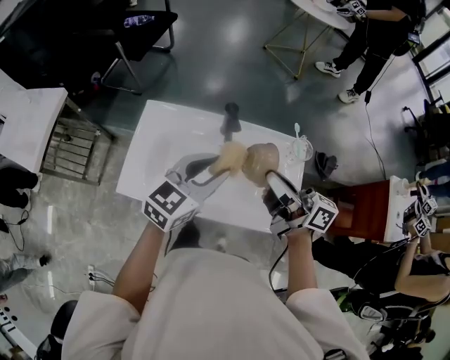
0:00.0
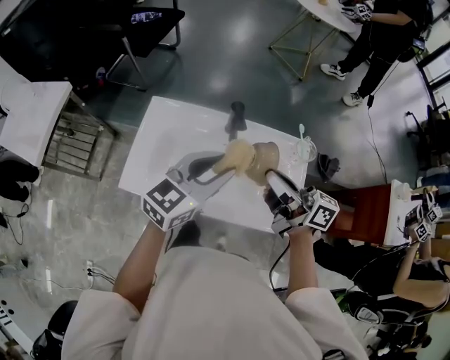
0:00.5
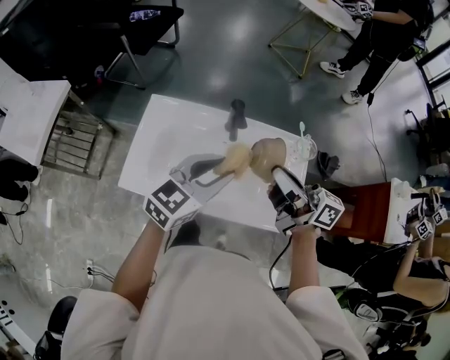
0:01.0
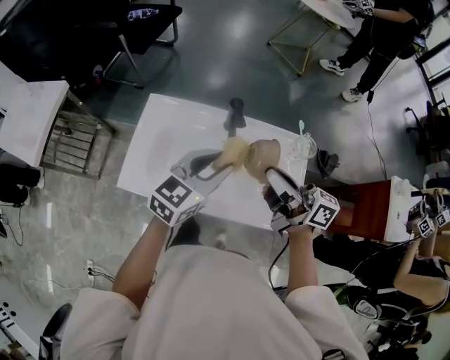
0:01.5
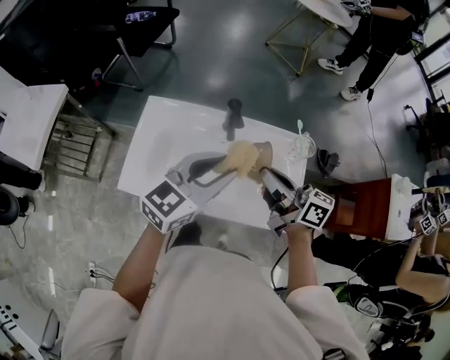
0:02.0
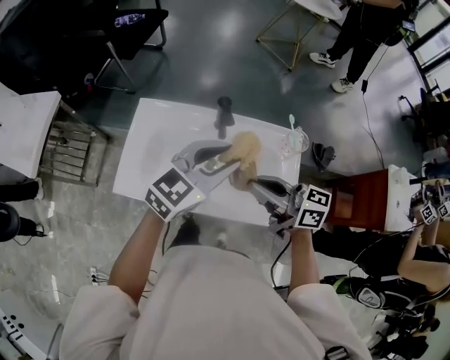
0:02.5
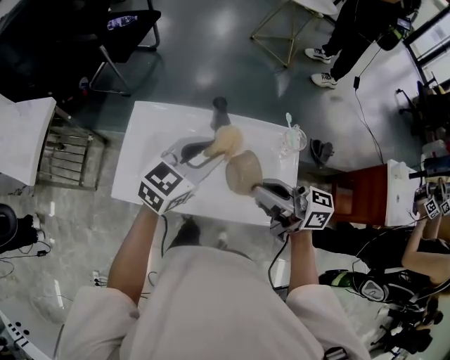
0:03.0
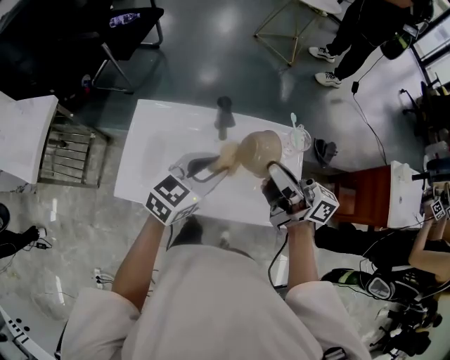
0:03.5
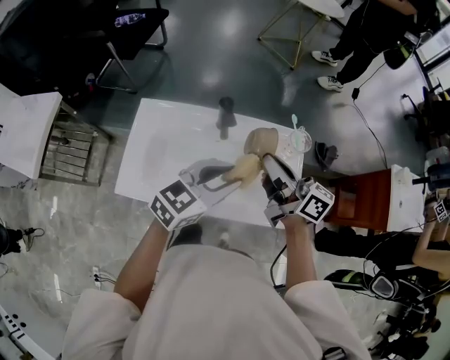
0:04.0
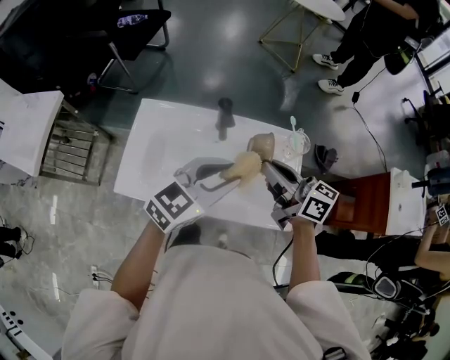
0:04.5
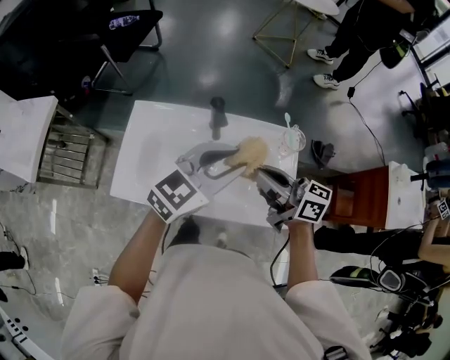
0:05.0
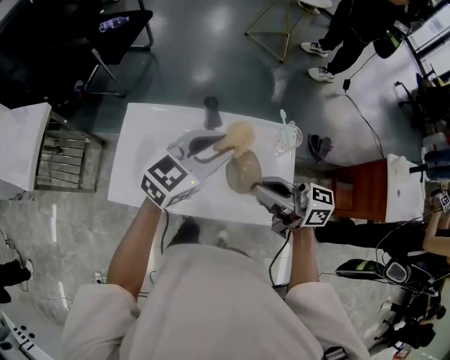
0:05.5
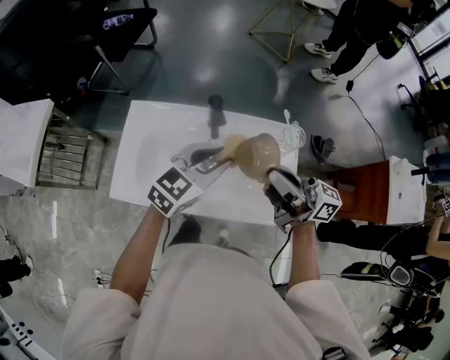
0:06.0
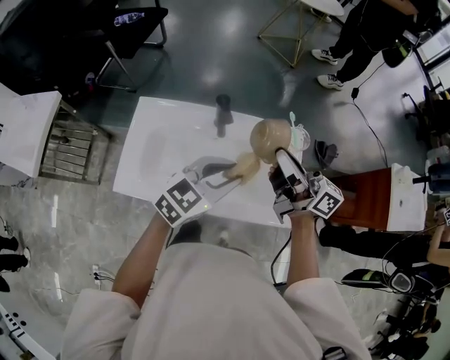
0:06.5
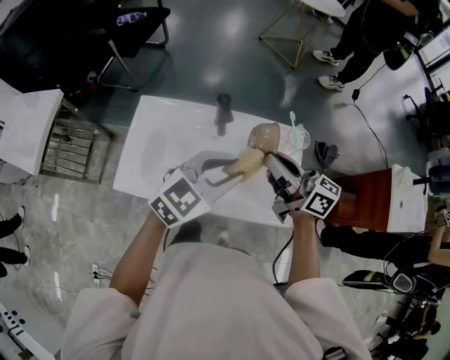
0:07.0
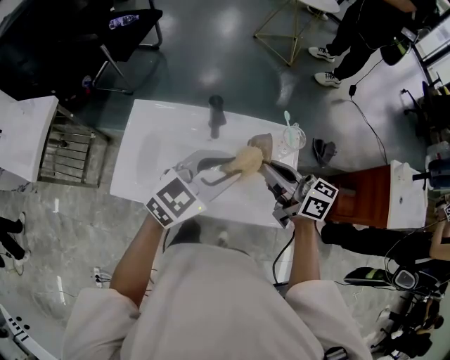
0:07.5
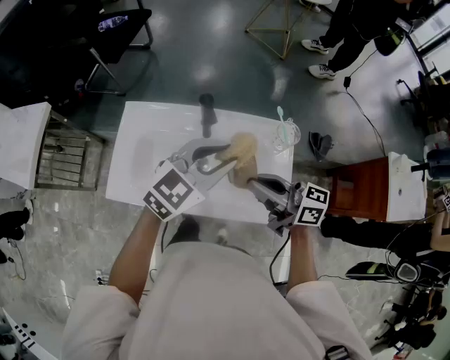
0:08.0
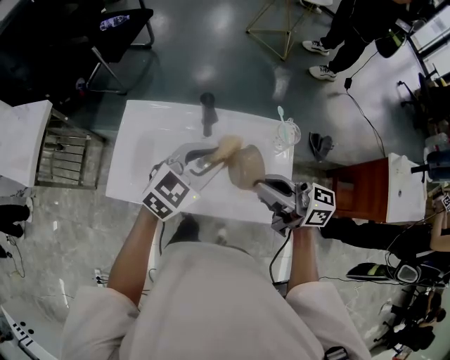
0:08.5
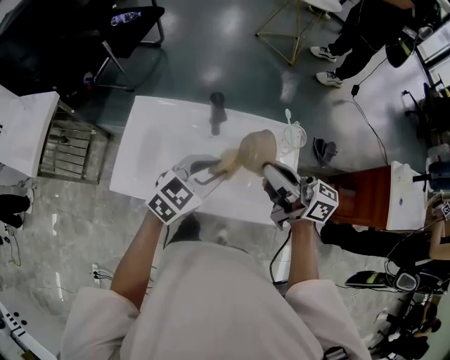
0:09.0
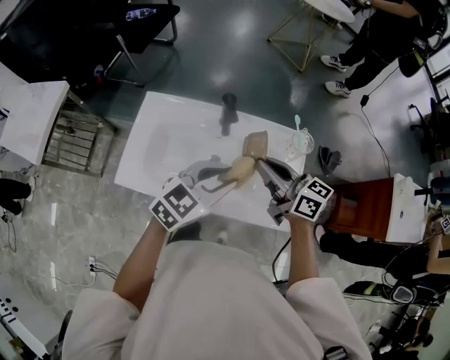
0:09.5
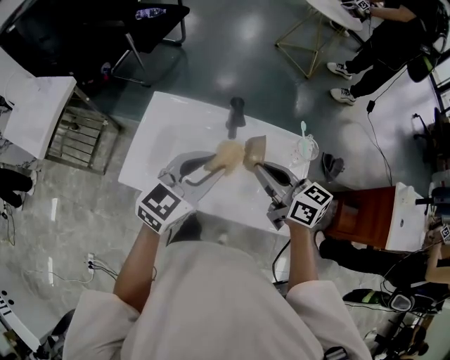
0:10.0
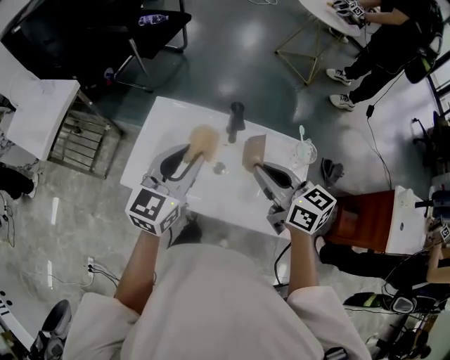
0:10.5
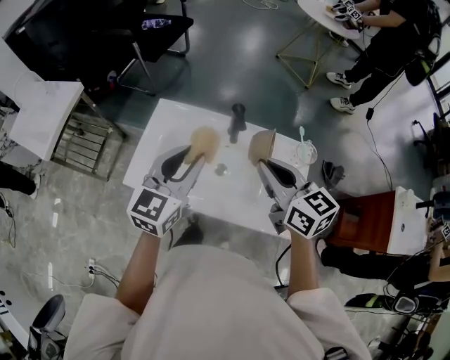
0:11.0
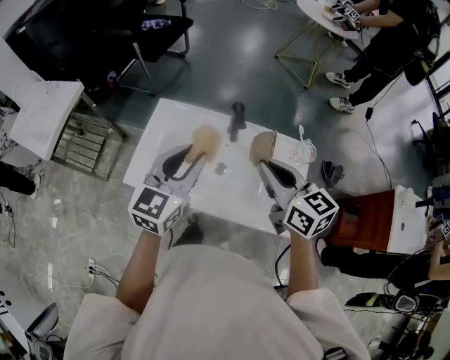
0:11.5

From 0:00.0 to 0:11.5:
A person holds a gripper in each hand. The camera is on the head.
From 0:00.0 to 0:02.0: There are only small adjustments of the grippers.
From 0:02.0 to 0:04.0: The left gripper changes place by roughly 5 cm.
From 0:04.0 to 0:06.0: The right gripper ends up about 5 cm from where it was, and changes its angle by about 20 degrees.
From 0:06.0 to 0:07.5: The left gripper moves approximately 5 cm; the right gripper goes about 5 cm downward, and turns by roughly 20 degrees.
From 0:07.5 to 0:09.5: The left gripper heads downward, covering approximately 5 cm.
From 0:09.5 to 0:11.5: The right gripper heads upward, covering about 5 cm, and turns by approximately 20 degrees, while the left gripper goes approximately 15 cm to the left and upward, and turns by roughly 30 degrees.

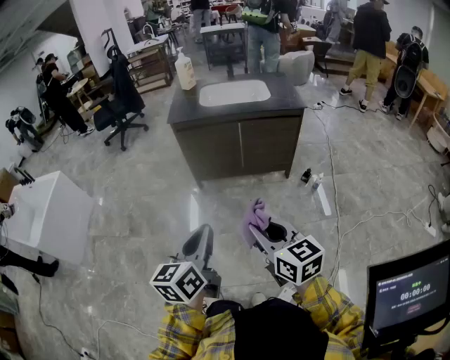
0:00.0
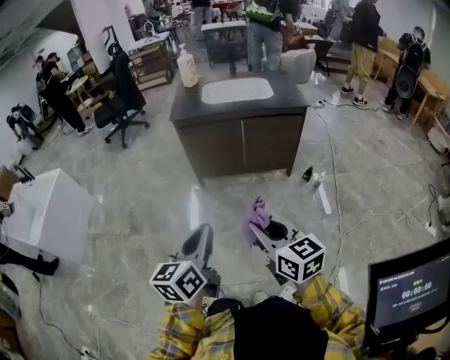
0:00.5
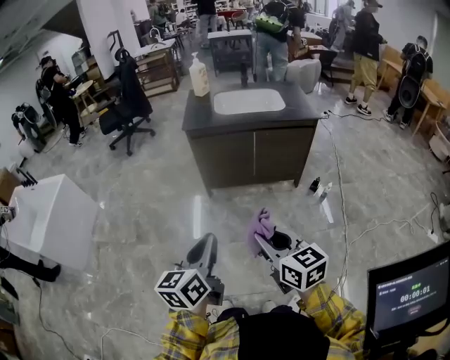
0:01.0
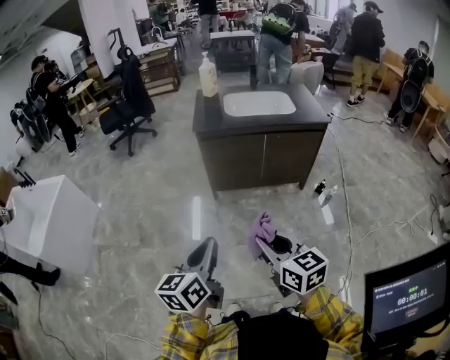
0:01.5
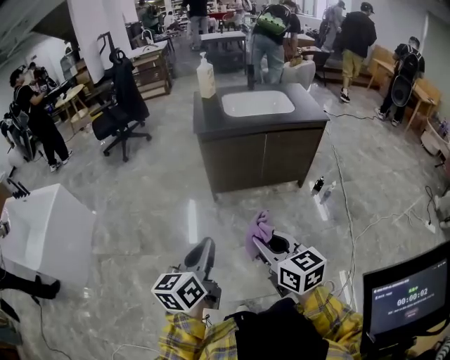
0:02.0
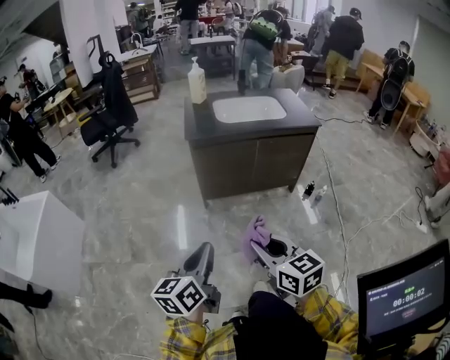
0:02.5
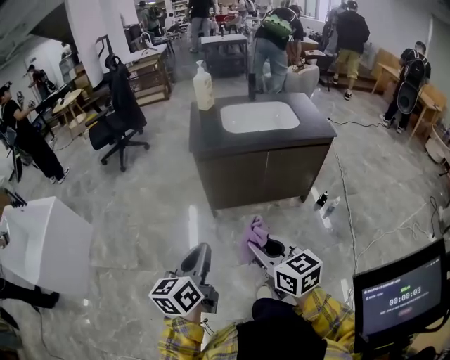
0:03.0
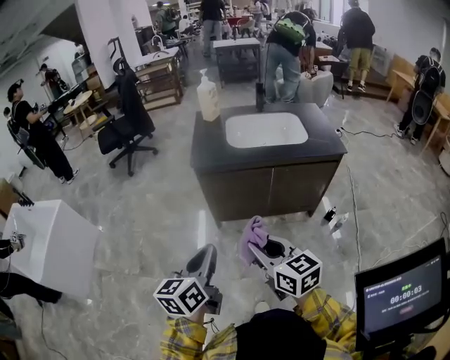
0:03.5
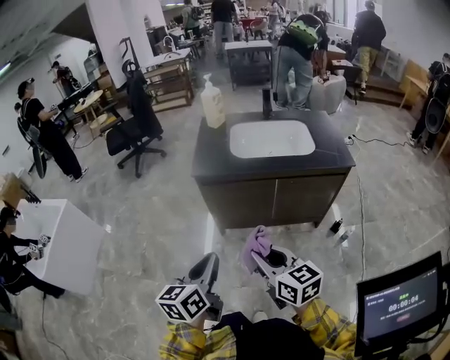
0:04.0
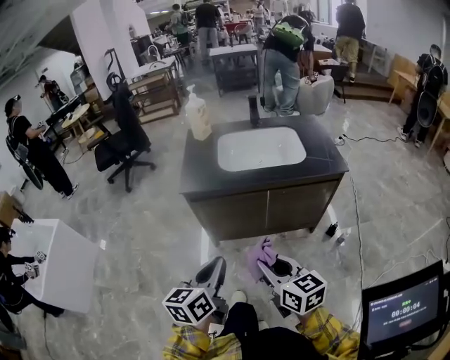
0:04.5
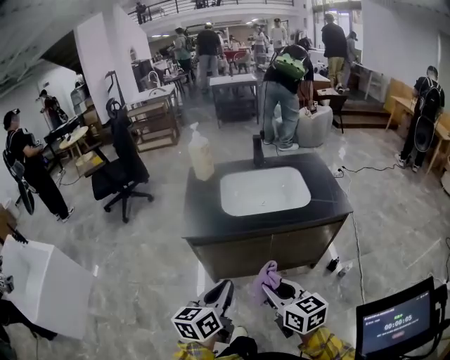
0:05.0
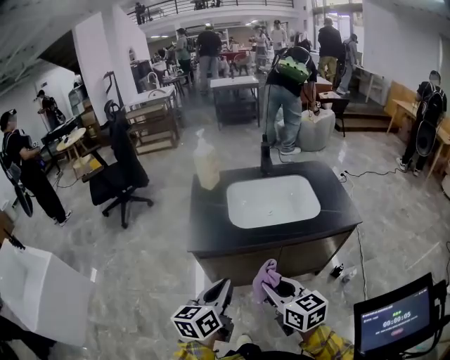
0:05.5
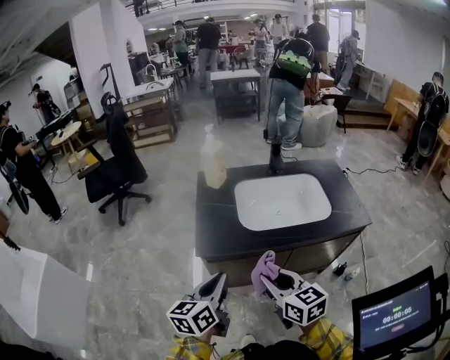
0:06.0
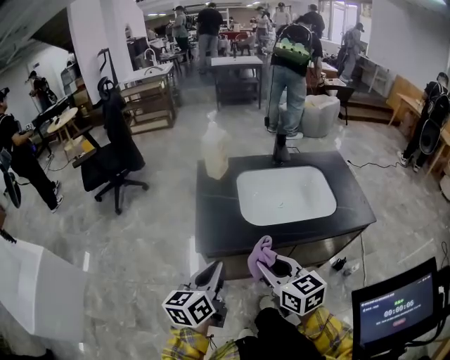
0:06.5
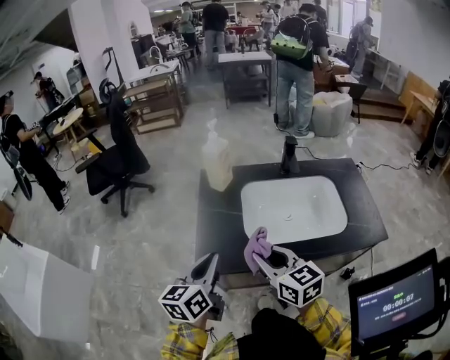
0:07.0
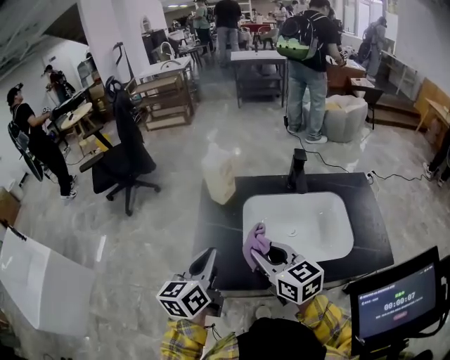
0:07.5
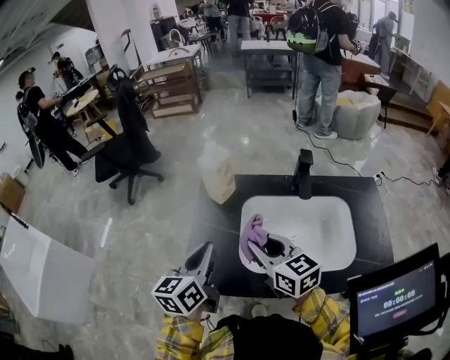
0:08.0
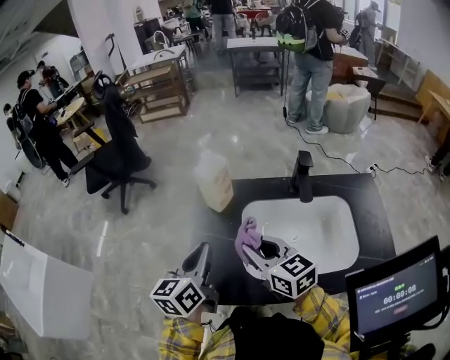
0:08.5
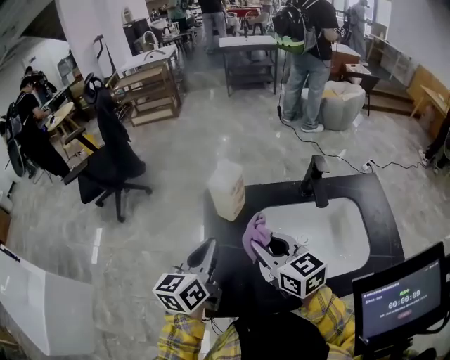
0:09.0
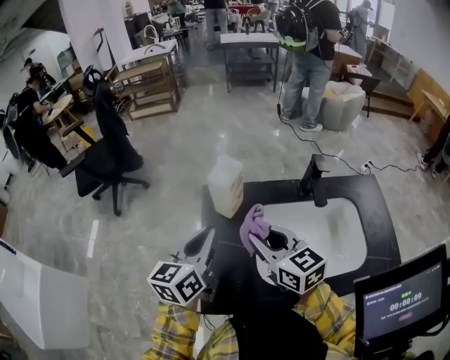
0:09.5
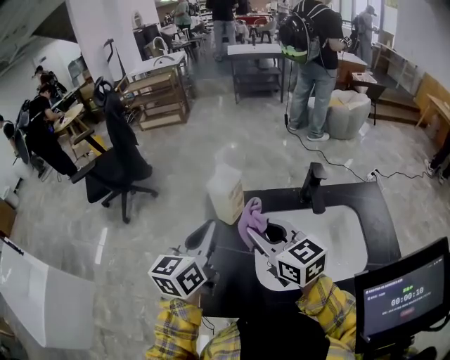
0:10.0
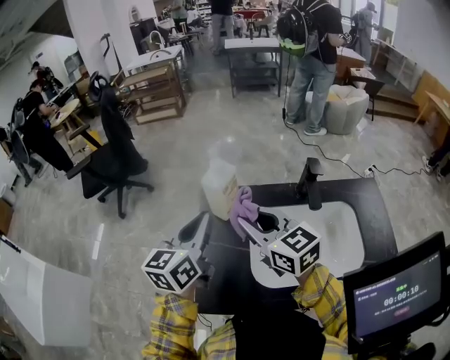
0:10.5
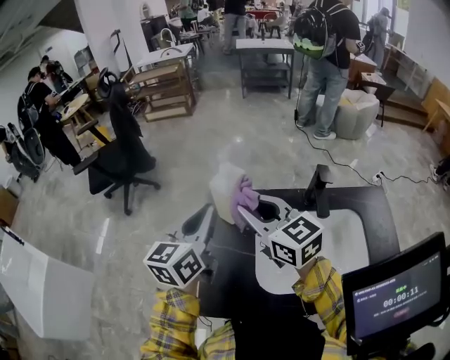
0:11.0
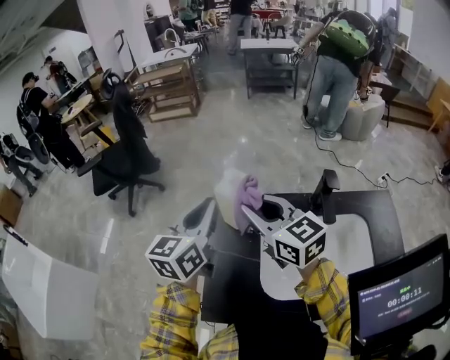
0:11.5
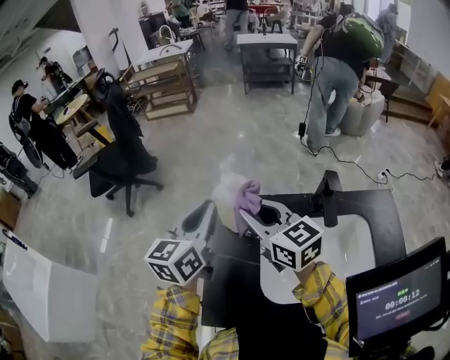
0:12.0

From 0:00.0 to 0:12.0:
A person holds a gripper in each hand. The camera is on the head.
From 0:00.0 to 0:02.0: Both grippers travel together to the left, approximately 25 cm.
From 0:02.0 to 0:04.0: The grippers both shift forward and to the right by approximately 30 cm.
From 0:04.0 to 0:06.0: The grippers both shift forward by roughly 30 cm.
From 0:06.0 to 0:08.0: The grippers both shift forward by approximately 30 cm.
From 0:08.0 to 0:10.0: The two grippers go about 10 cm forward.
From 0:10.0 to 0:12.0: Both grippers move forward, approximately 10 cm.

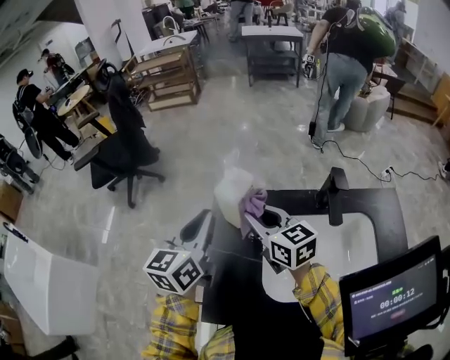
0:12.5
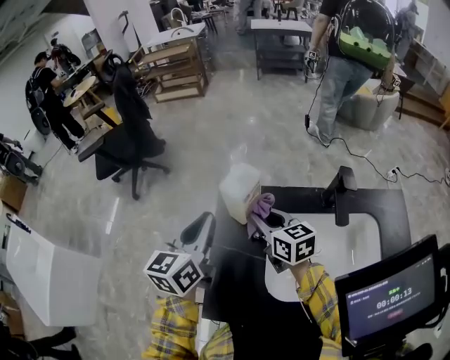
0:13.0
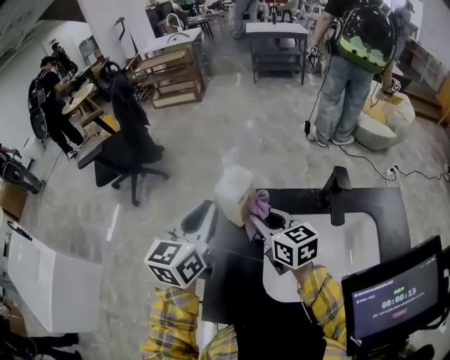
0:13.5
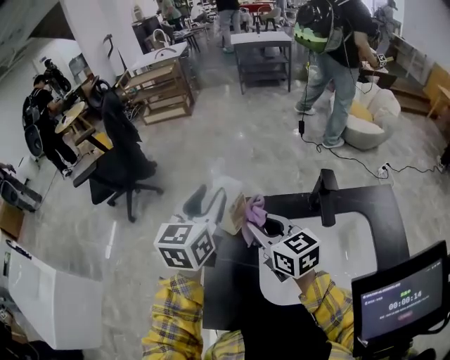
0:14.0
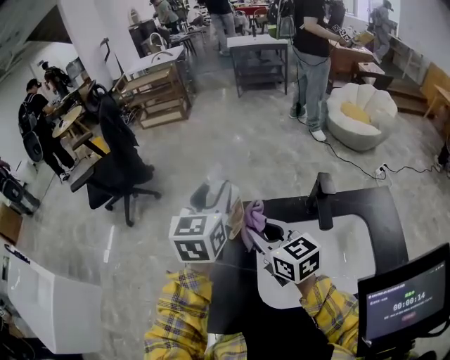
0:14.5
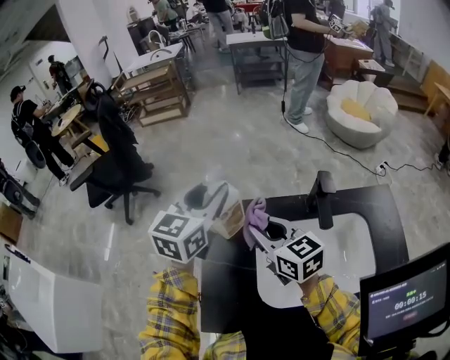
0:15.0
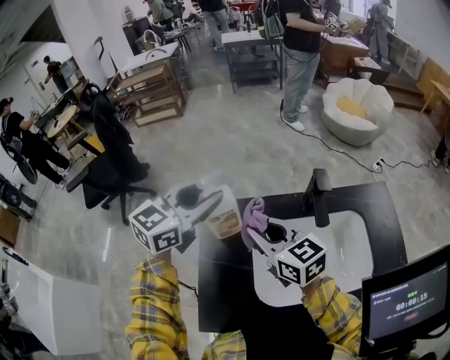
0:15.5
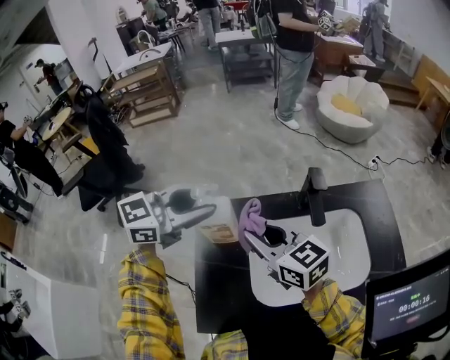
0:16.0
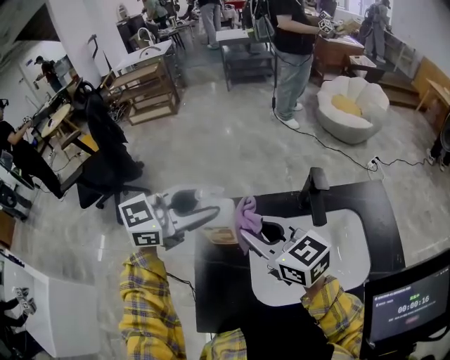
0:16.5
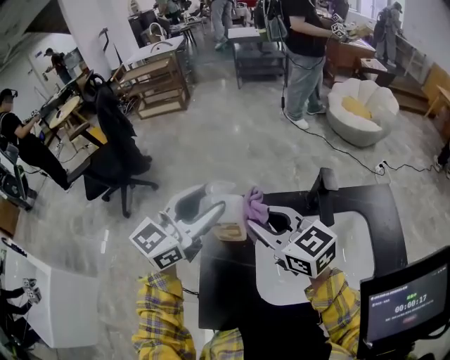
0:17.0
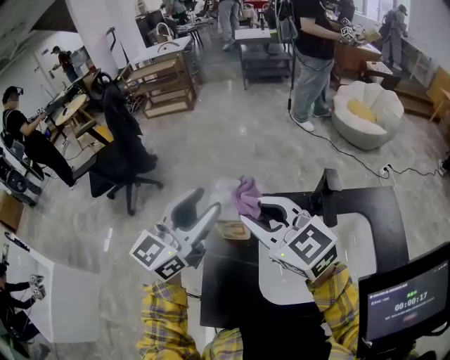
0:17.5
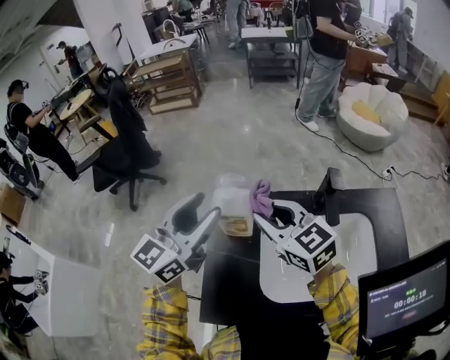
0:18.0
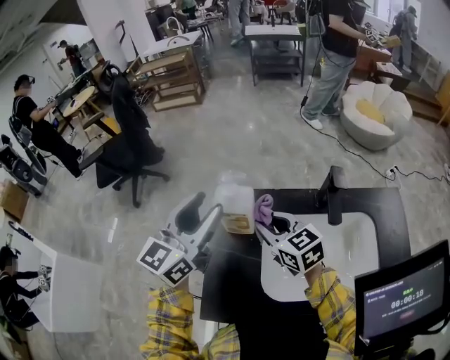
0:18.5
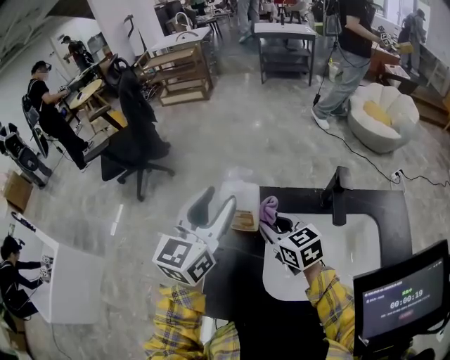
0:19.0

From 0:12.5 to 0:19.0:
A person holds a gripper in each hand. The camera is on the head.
From 0:12.5 to 0:14.5: The left gripper moves to the right and forward, roughly 10 cm, and opens up.
From 0:14.5 to 0:17.0: The right gripper moves upward, some 5 cm, while the left gripper shifts by roughly 5 cm, and rotates about 40 degrees.
From 0:17.0 to 0:19.0: The right gripper goes some 10 cm downward; the left gripper swivels roughly 30 degrees.
